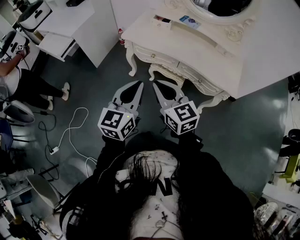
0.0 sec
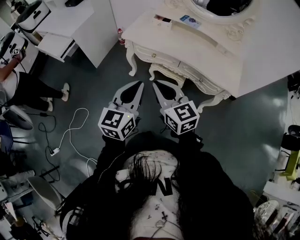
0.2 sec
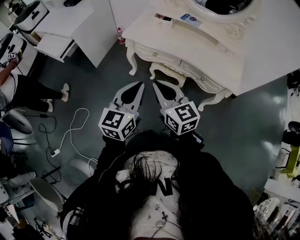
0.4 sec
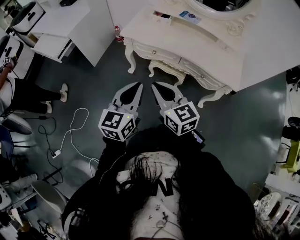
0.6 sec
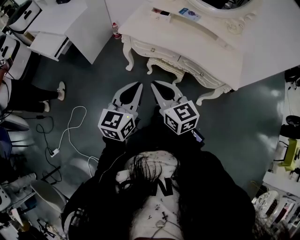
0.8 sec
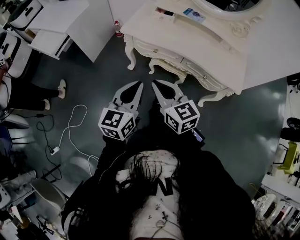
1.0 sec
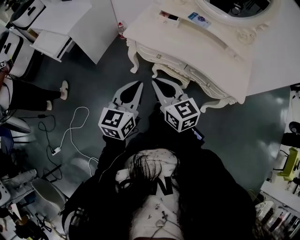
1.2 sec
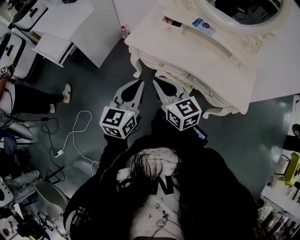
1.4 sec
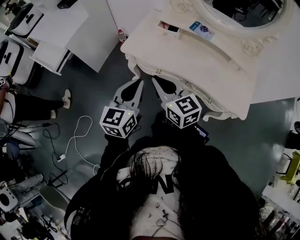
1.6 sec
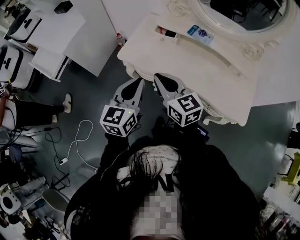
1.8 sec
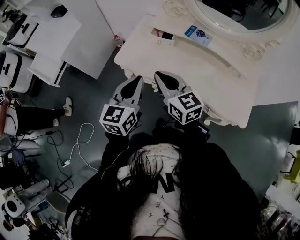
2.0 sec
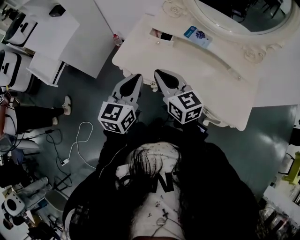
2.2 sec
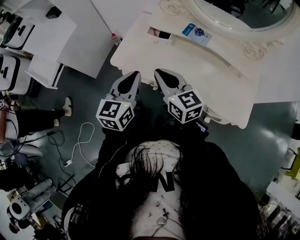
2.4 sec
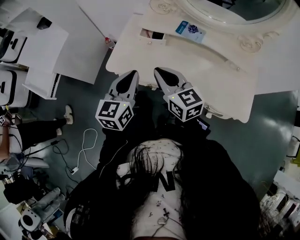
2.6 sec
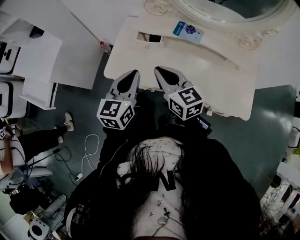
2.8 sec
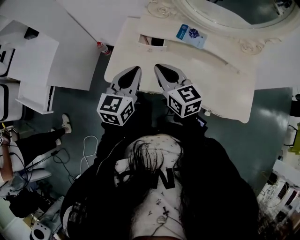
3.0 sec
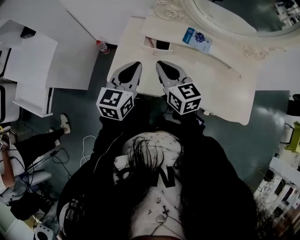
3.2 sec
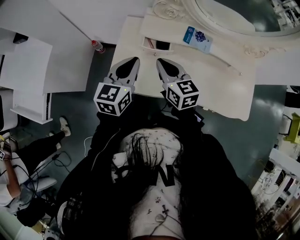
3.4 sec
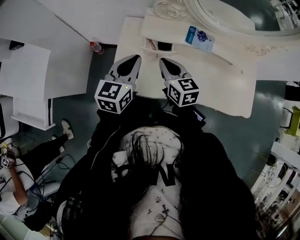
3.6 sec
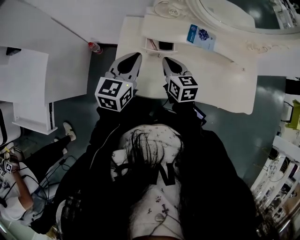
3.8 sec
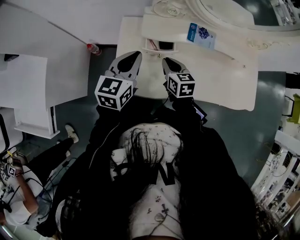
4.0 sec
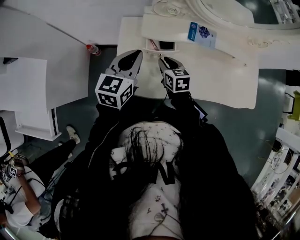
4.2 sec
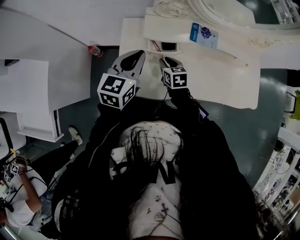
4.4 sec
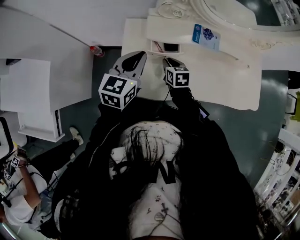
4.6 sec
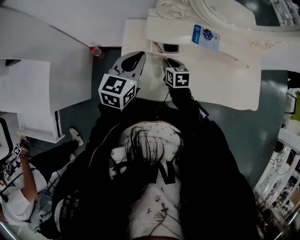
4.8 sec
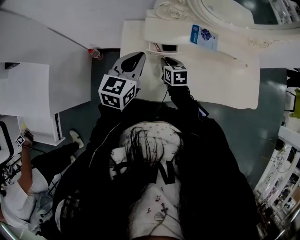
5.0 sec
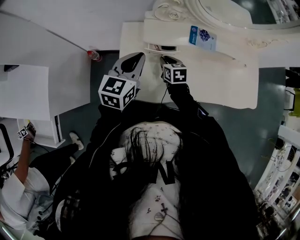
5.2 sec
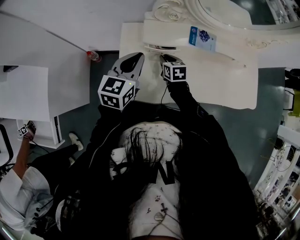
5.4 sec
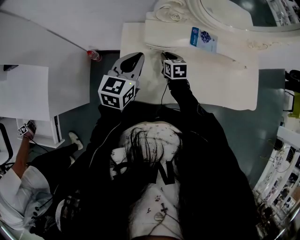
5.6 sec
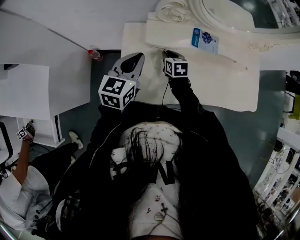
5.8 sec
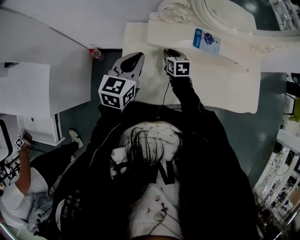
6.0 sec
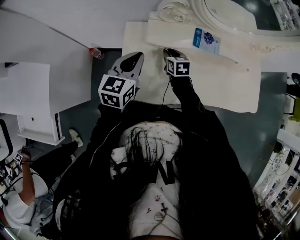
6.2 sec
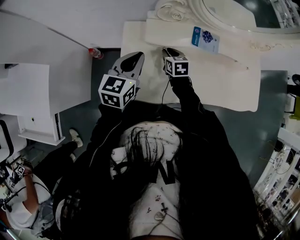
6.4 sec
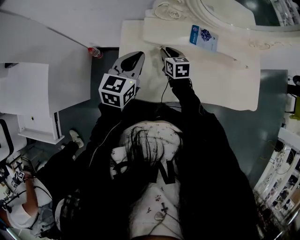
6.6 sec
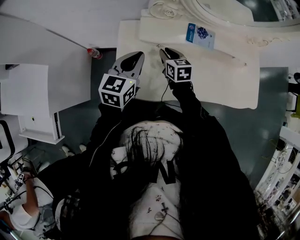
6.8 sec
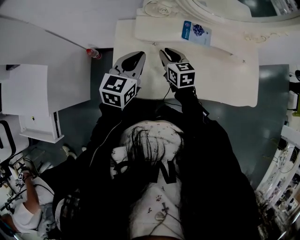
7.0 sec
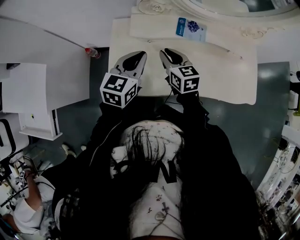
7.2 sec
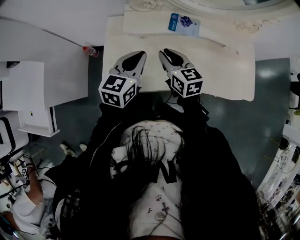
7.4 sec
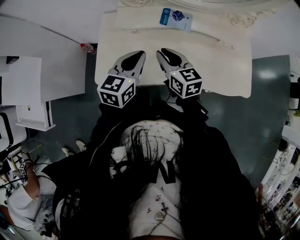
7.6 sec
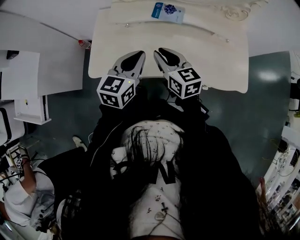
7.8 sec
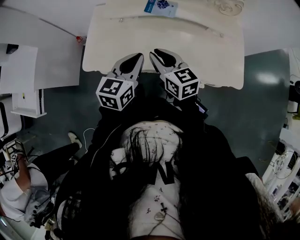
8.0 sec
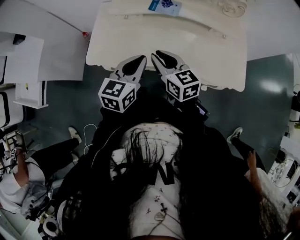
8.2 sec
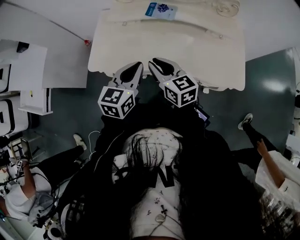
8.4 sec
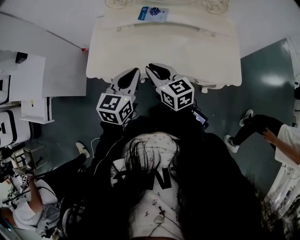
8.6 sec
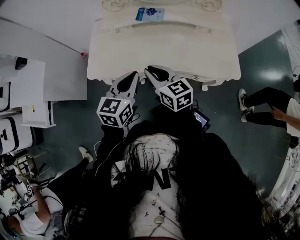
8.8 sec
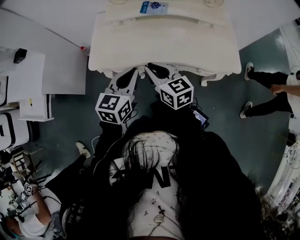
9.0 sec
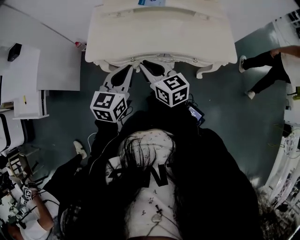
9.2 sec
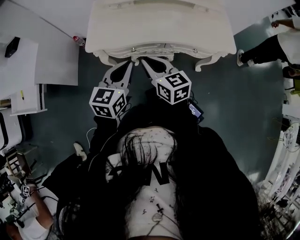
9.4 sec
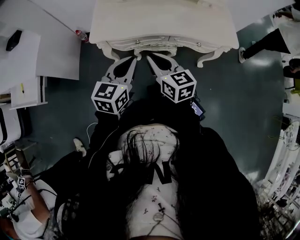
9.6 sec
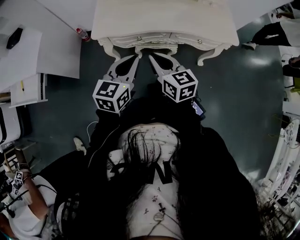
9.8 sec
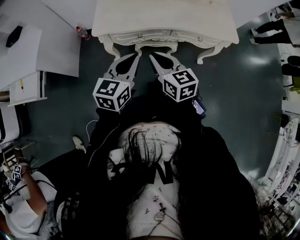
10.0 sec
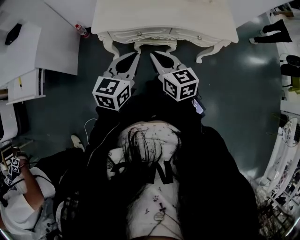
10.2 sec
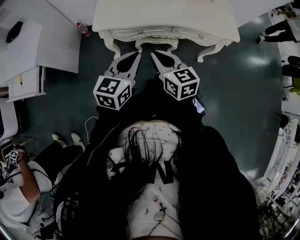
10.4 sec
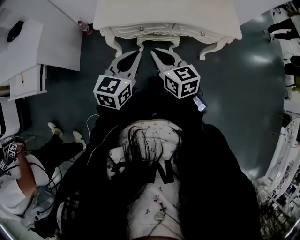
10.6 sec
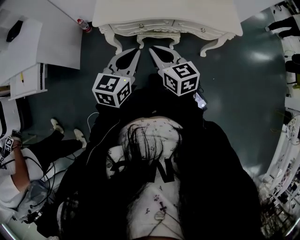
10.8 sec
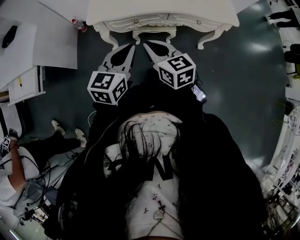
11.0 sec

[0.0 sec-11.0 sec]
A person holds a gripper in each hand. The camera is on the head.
0.0 sec to 1.6 sec: The grippers both shift forward by some 20 cm.
1.6 sec to 3.2 sec: Both grippers move forward, some 30 cm.
3.2 sec to 4.8 sec: The right gripper goes roughly 25 cm downward and forward, and rotates approximately 40 degrees; the left gripper goes some 10 cm forward and to the left.
4.8 sec to 6.2 sec: The right gripper moves forward, about 5 cm.
6.2 sec to 7.8 sec: The left gripper moves to the right and backward, some 25 cm; the right gripper goes approximately 30 cm backward, upward and to the right, and swivels some 30 degrees.
7.8 sec to 9.4 sec: The two grippers go about 25 cm backward.
9.4 sec to 11.0 sec: Both grippers travel together backward, approximately 10 cm.

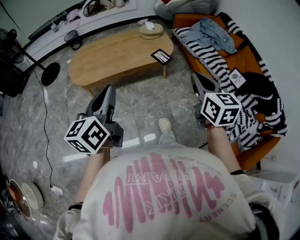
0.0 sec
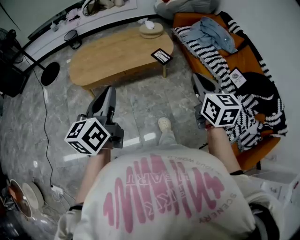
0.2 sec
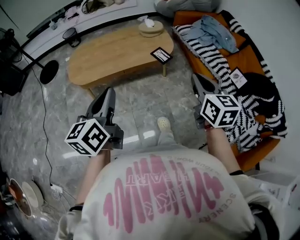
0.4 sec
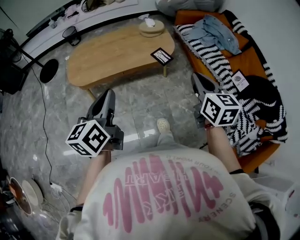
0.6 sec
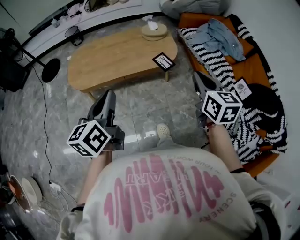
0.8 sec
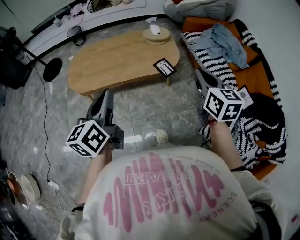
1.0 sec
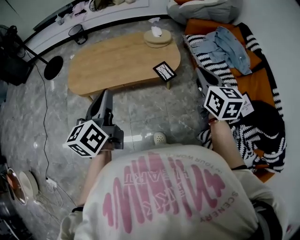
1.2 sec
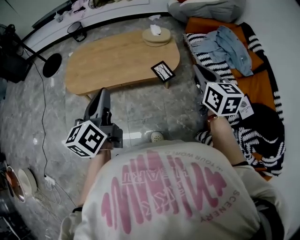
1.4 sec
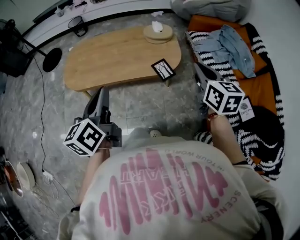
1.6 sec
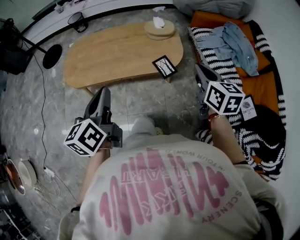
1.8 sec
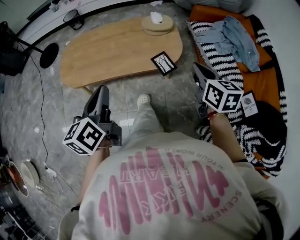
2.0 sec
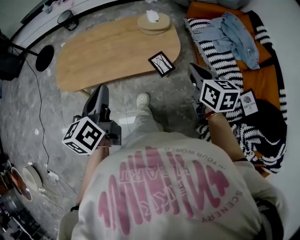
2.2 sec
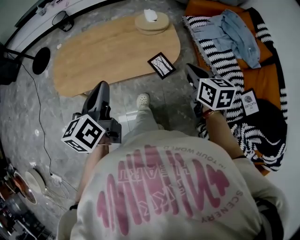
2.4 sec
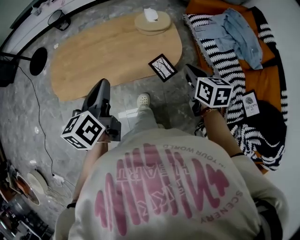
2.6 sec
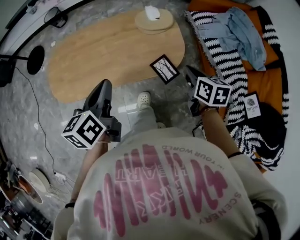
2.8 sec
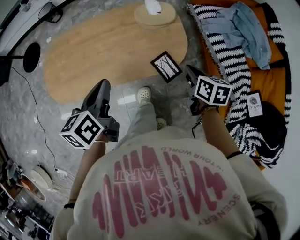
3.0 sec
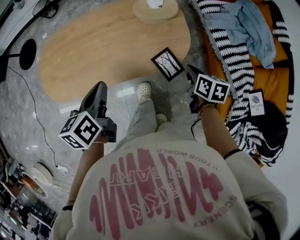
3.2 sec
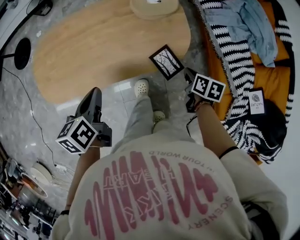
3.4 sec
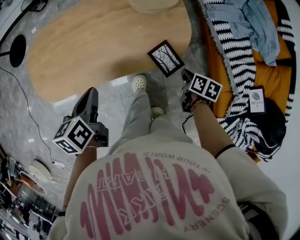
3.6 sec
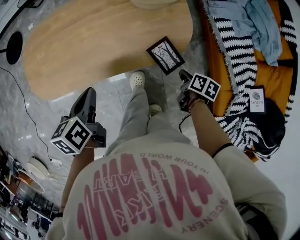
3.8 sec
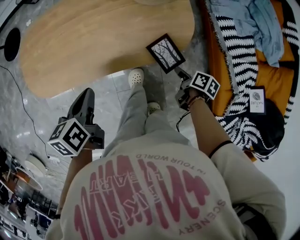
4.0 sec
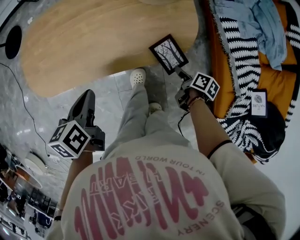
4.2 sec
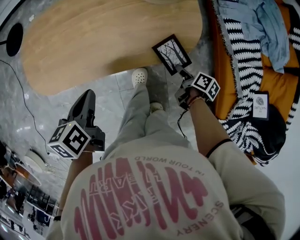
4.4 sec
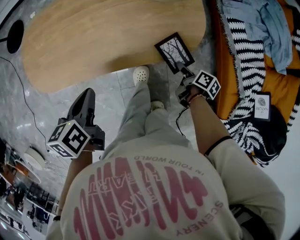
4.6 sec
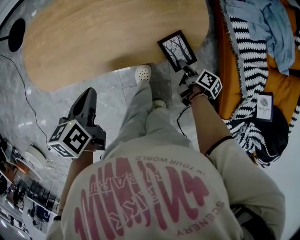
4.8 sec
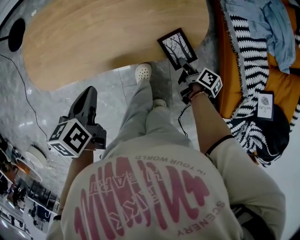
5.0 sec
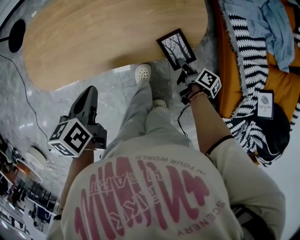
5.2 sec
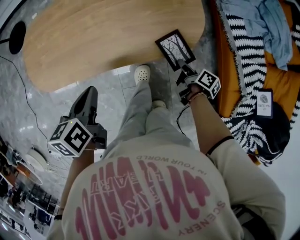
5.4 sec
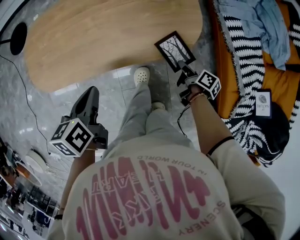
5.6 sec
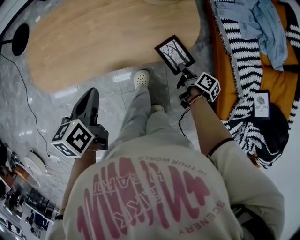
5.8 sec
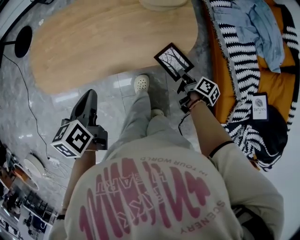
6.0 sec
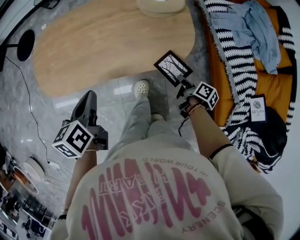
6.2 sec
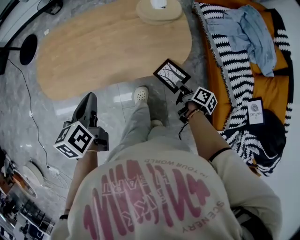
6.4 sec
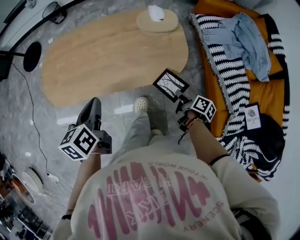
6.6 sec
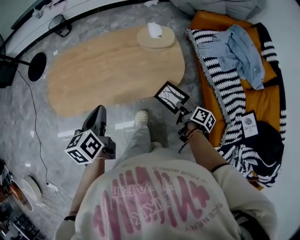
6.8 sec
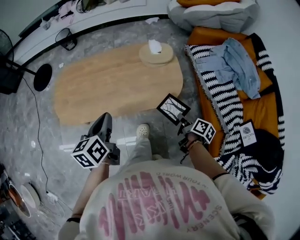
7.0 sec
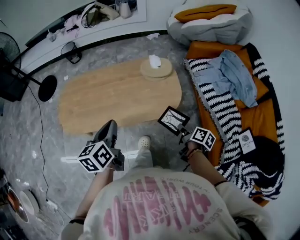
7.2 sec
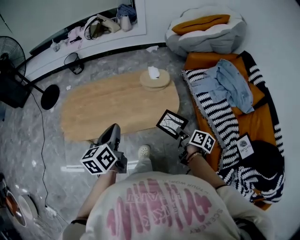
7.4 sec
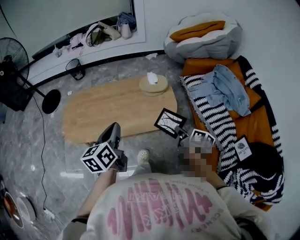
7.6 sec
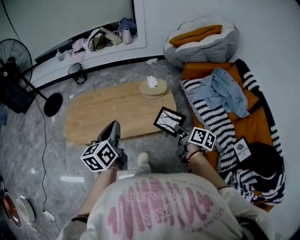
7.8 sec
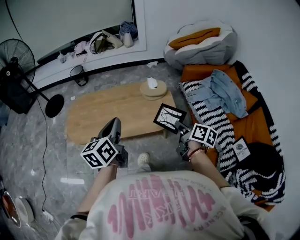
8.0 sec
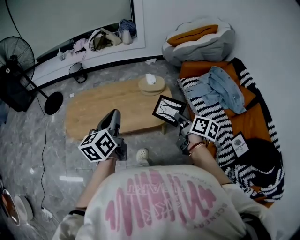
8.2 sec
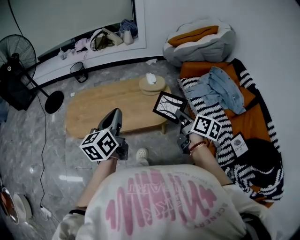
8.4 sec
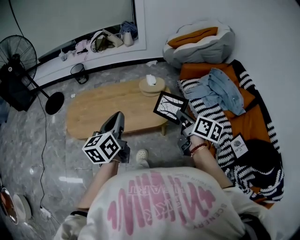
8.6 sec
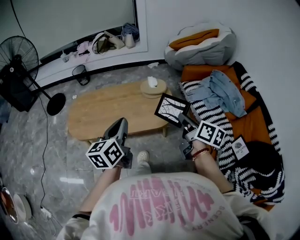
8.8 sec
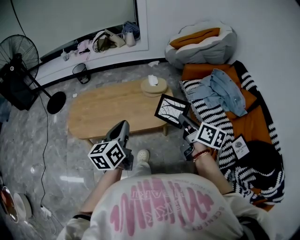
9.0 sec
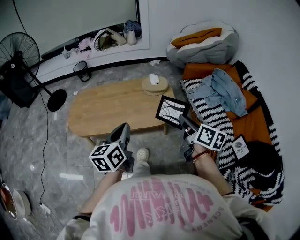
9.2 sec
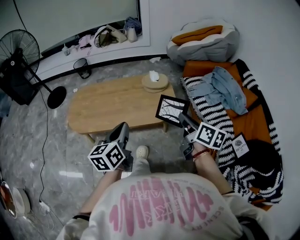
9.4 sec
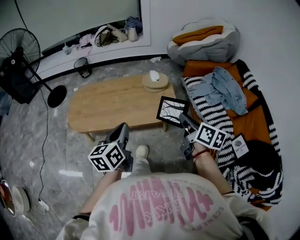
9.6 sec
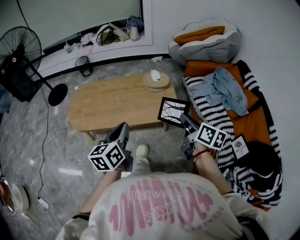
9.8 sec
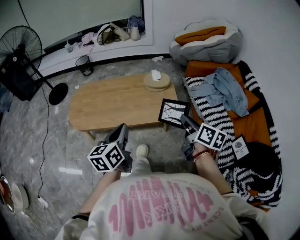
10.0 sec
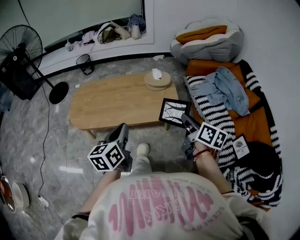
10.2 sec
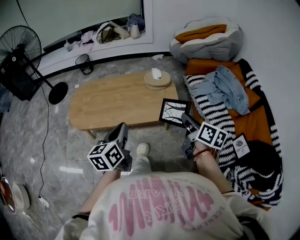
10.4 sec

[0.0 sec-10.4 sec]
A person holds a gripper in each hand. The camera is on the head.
0.0 sec to 1.4 sec: The grippers both shift forward by some 20 cm.
1.4 sec to 3.0 sec: The left gripper is displaced forward and downward by roughly 25 cm, and turns by approximately 20 degrees, while the right gripper heads downward and forward, covering about 30 cm, and rotates approximately 30 degrees.
3.0 sec to 4.4 sec: The right gripper goes about 25 cm downward, twists about 40 degrees clockwise, seen from behind, and opens, while the left gripper heads downward, covering roughly 15 cm.
4.4 sec to 6.0 sec: The right gripper closes up.
6.0 sec to 7.4 sec: The left gripper travels upward and to the right by some 15 cm, and swivels approximately 20 degrees, while the right gripper moves upward, approximately 20 cm.
7.4 sec to 9.0 sec: The right gripper shifts some 20 cm upward, and swivels approximately 30 degrees; the left gripper goes roughly 10 cm backward and upward.
9.0 sec to 10.4 sec: There are only small adjustments of the grippers.

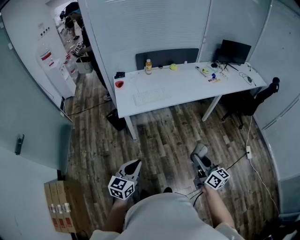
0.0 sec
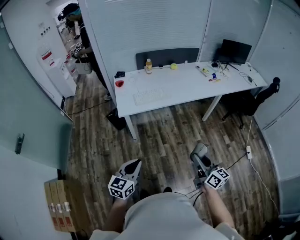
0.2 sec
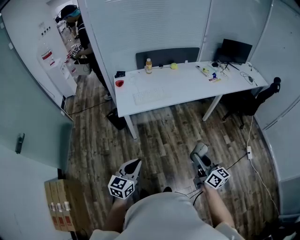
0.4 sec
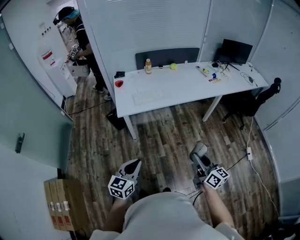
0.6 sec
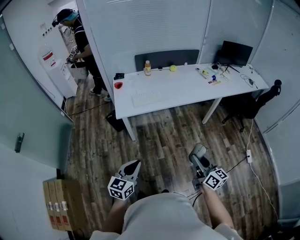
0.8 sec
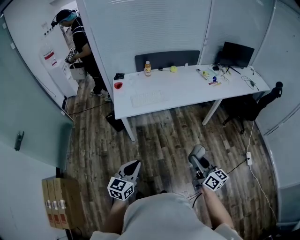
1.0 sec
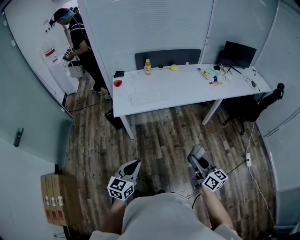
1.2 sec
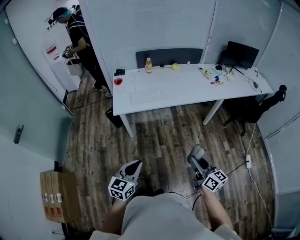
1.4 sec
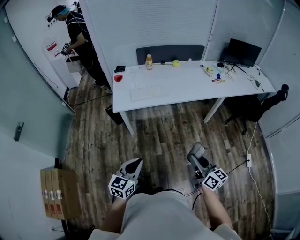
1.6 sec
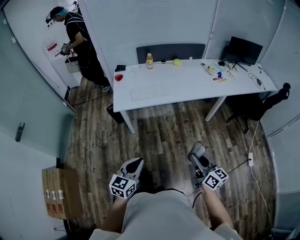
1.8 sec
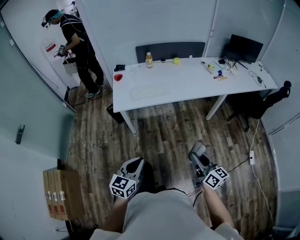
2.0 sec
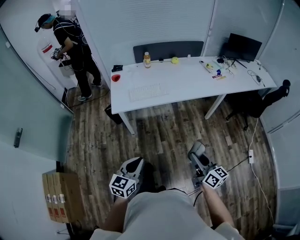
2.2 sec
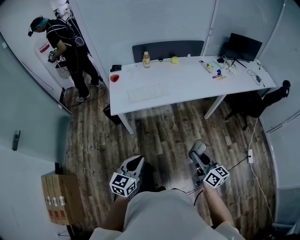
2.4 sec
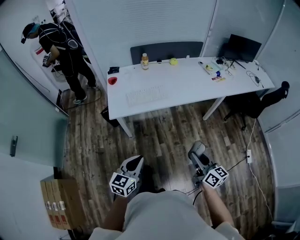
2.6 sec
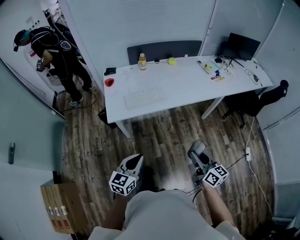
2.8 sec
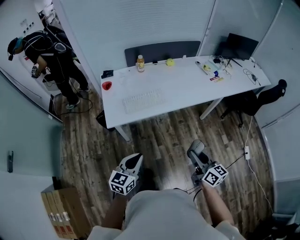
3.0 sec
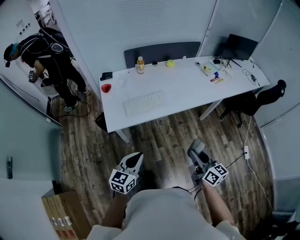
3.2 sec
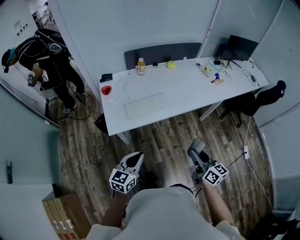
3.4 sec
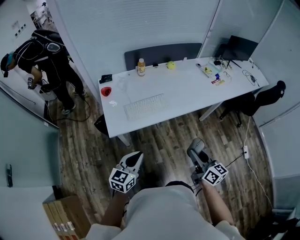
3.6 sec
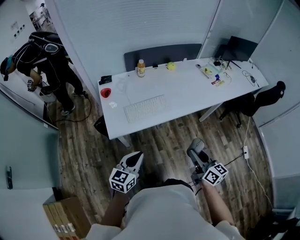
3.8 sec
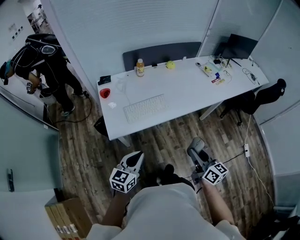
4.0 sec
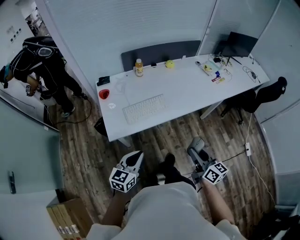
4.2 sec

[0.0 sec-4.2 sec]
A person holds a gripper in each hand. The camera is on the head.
0.0 sec to 1.4 sec: The grippers both shift to the right by approximately 10 cm.
1.4 sec to 2.8 sec: Both grippers move forward, approximately 15 cm.
2.8 sec to 4.2 sec: The grippers both shift forward and to the left by about 15 cm.
